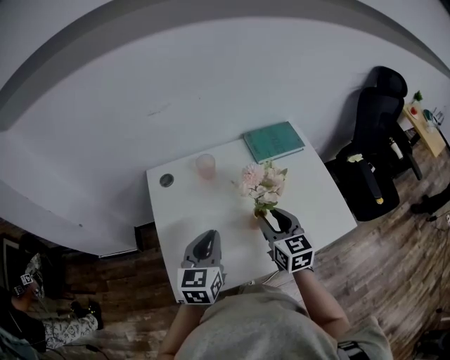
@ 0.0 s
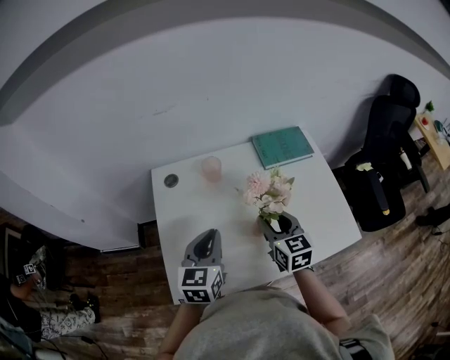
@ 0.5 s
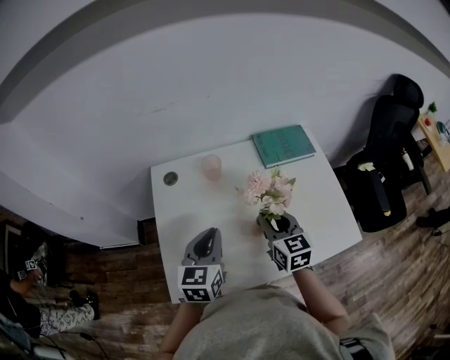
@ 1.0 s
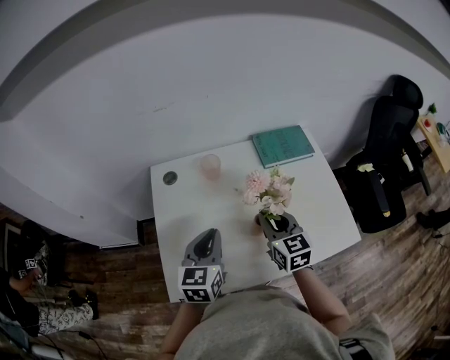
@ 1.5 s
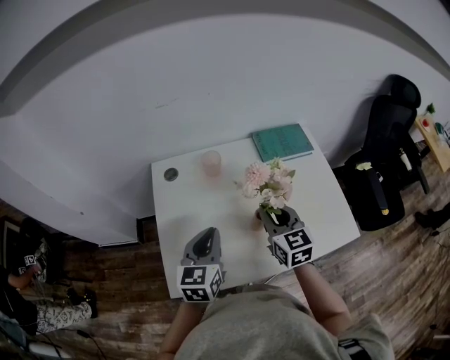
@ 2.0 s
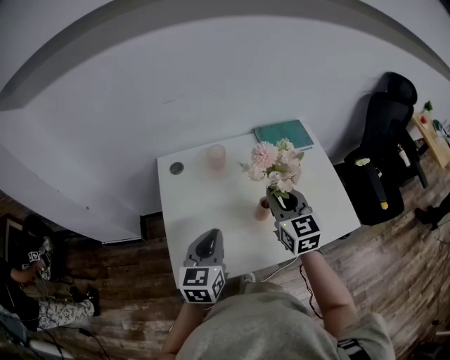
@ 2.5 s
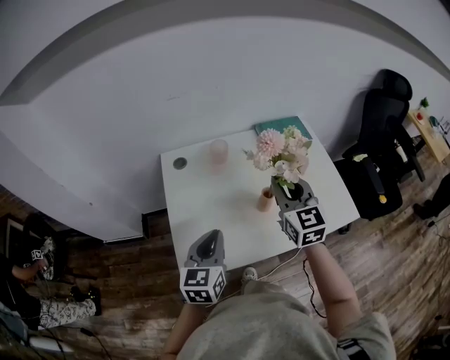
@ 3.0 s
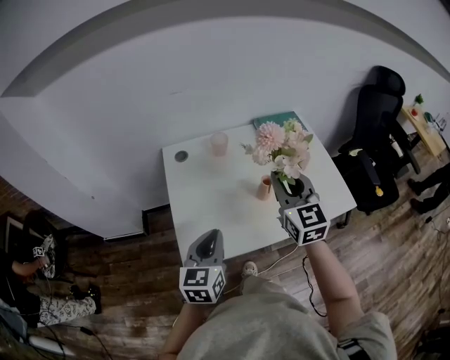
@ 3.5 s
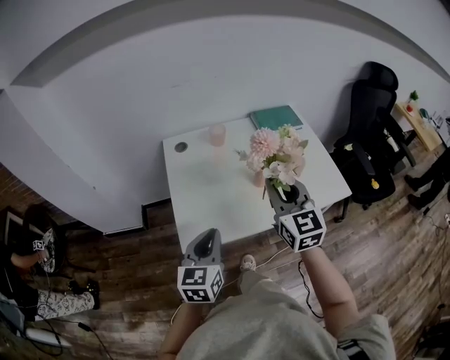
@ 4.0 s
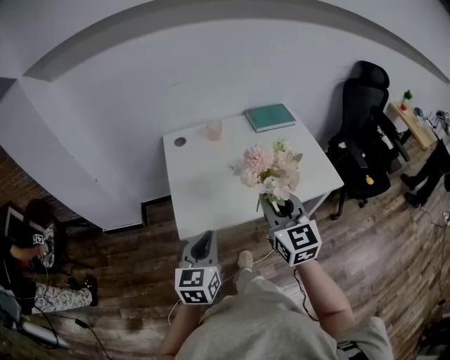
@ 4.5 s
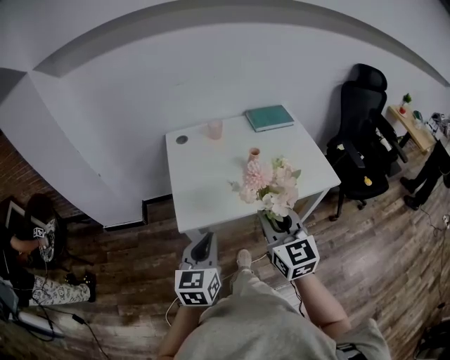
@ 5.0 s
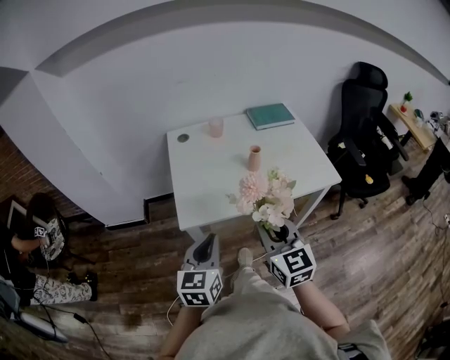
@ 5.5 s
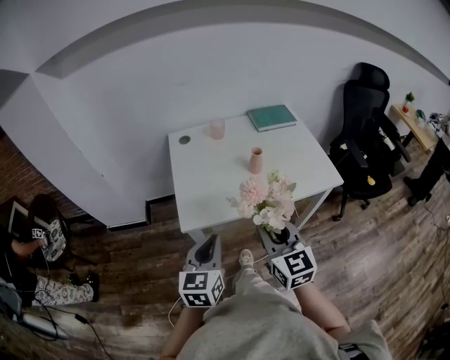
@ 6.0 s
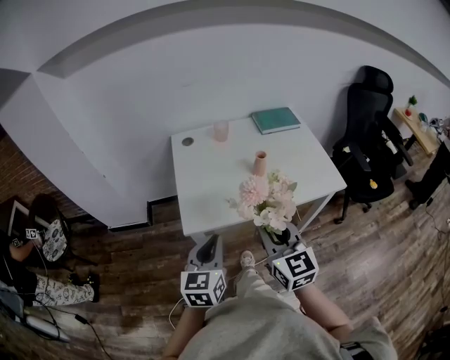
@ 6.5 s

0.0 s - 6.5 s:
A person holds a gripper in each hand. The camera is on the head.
0.0 s - 2.0 s: The right gripper closes.
2.0 s - 4.5 s: The right gripper heads backward and upward, covering approximately 30 cm. Meanwhile the left gripper moves backward, some 25 cm.
4.5 s - 6.5 s: The right gripper is displaced backward by roughly 10 cm.

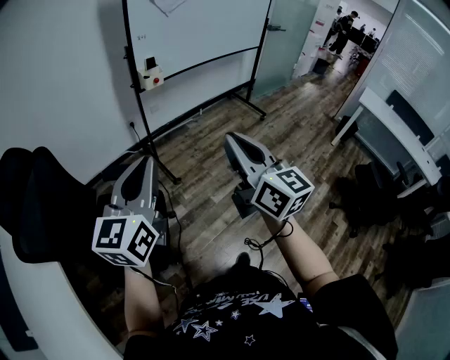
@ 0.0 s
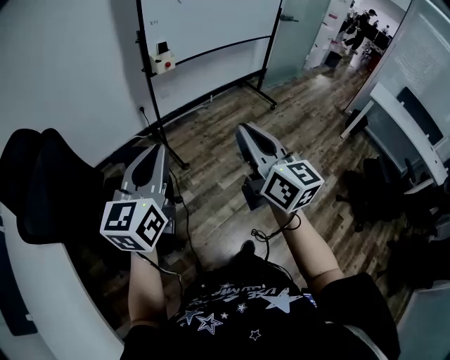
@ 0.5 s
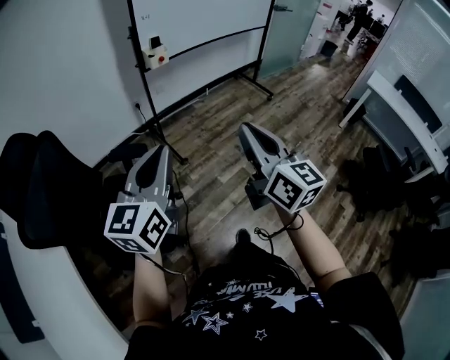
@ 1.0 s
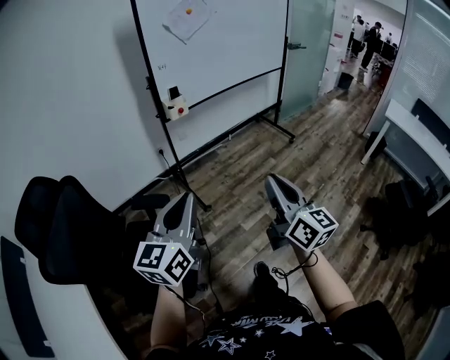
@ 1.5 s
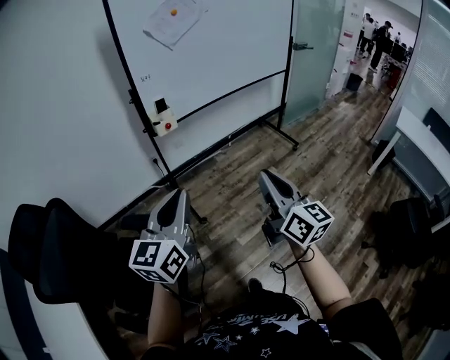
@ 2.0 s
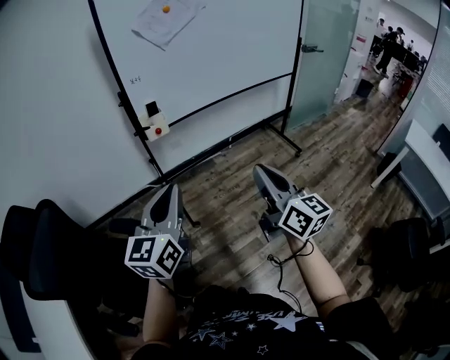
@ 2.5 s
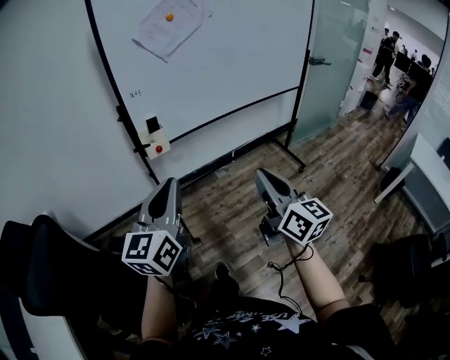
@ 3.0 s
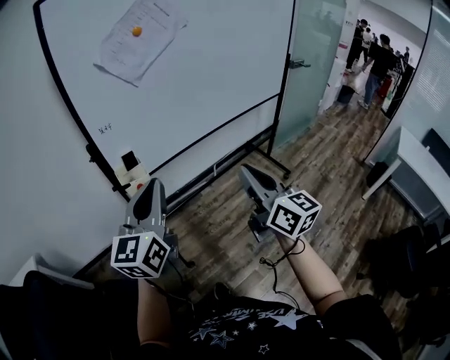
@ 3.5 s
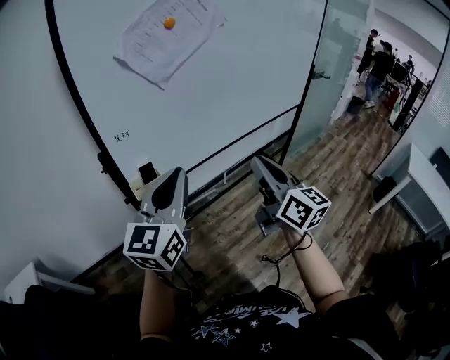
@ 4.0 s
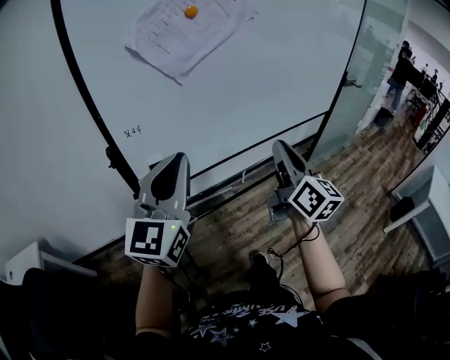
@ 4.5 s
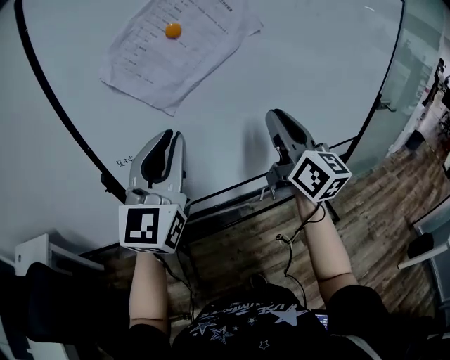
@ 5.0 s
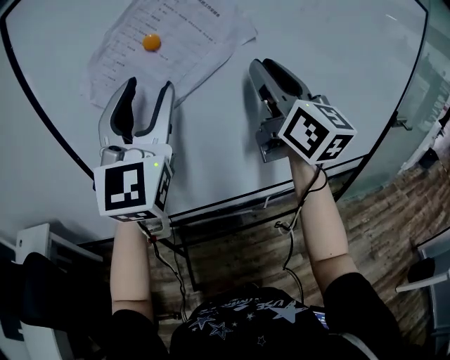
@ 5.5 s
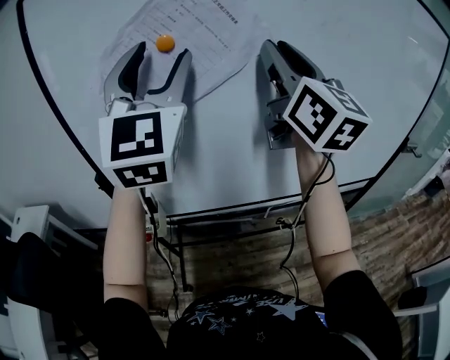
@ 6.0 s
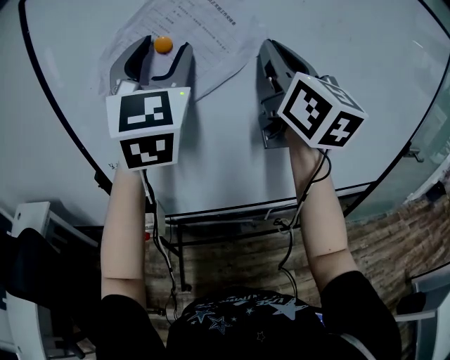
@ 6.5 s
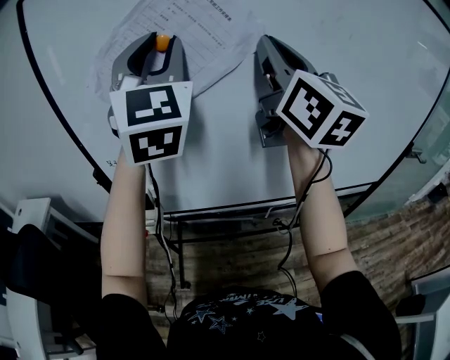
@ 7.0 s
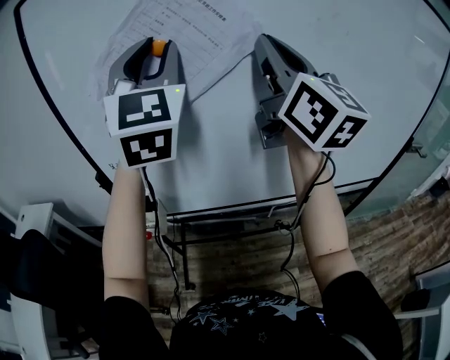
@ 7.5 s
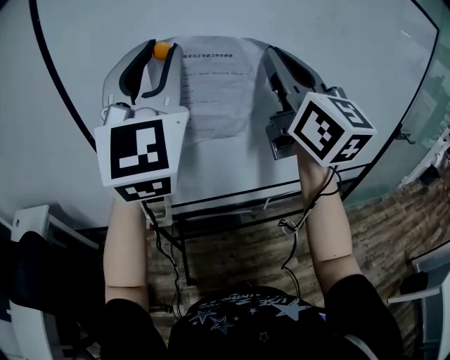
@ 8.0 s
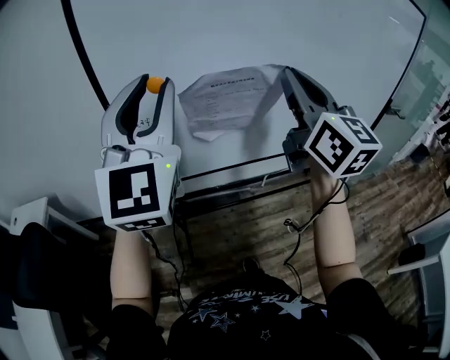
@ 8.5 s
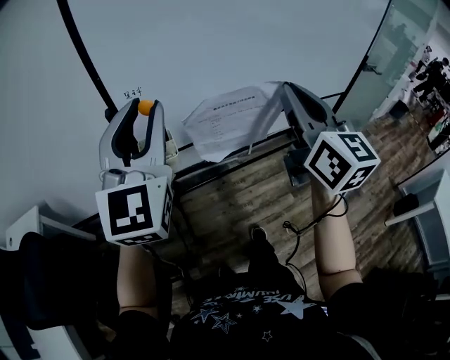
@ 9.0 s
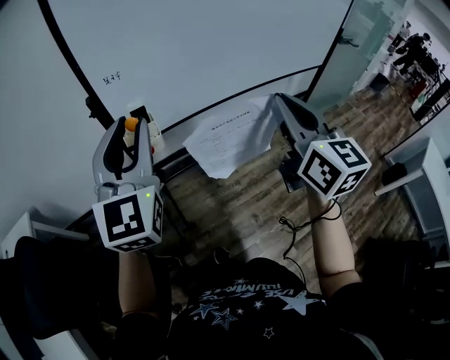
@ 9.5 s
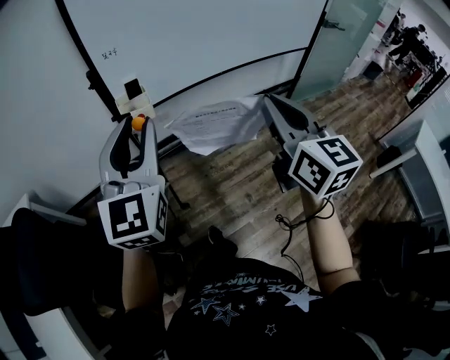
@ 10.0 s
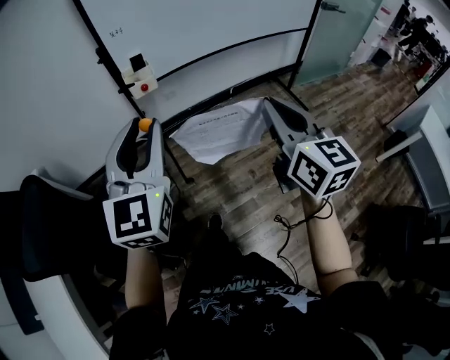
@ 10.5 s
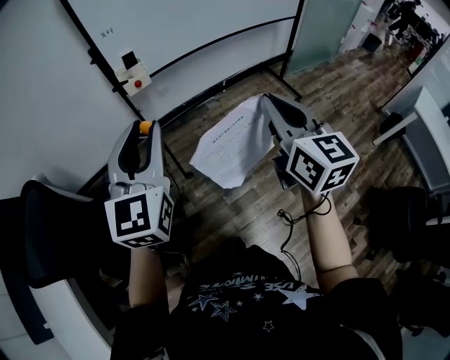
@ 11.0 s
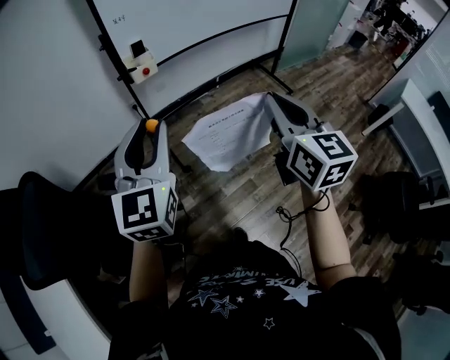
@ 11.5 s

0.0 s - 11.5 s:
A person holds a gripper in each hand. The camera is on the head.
0.0 s - 2.0 s: Both grippers travel together forward and to the right, about 25 cm.
2.0 s - 4.0 s: The pair of grippers is taken forward, some 40 cm.
4.0 s - 6.0 s: The left gripper ends up approximately 35 cm from where it was, changes its angle by roughly 60 degrees, and opens; the right gripper changes place by some 40 cm, changes its angle by about 30 degrees, and opens.
6.0 s - 7.5 s: The right gripper closes. Meanwhile the left gripper closes its fingers.
7.5 s - 9.5 s: The right gripper heads backward and downward, covering approximately 40 cm, and swivels roughly 30 degrees; the left gripper is displaced backward, downward and to the left by approximately 35 cm, and turns by approximately 30 degrees.
9.5 s - 11.5 s: The grippers both shift backward by approximately 30 cm.

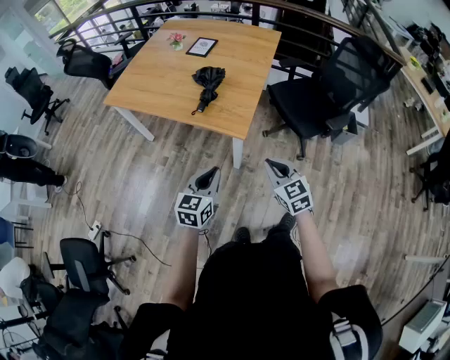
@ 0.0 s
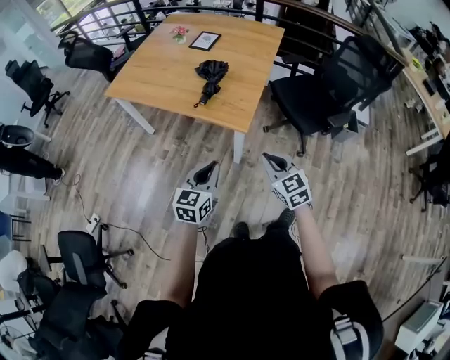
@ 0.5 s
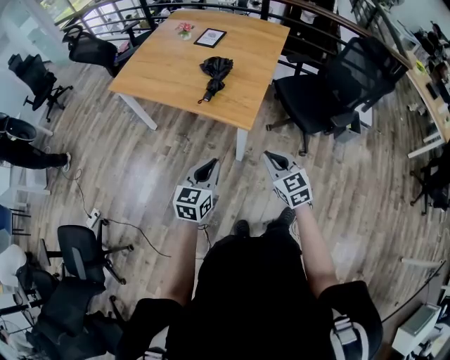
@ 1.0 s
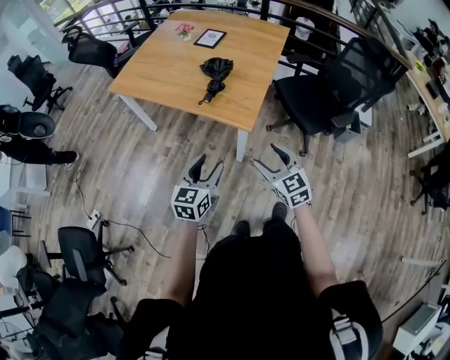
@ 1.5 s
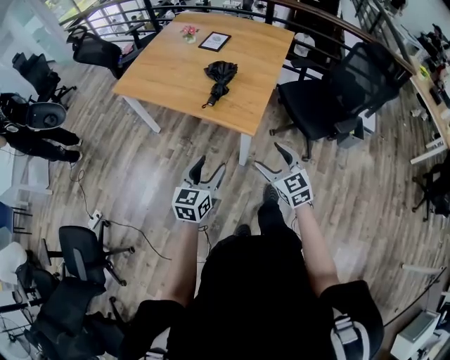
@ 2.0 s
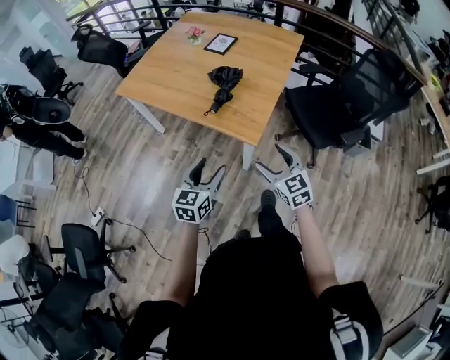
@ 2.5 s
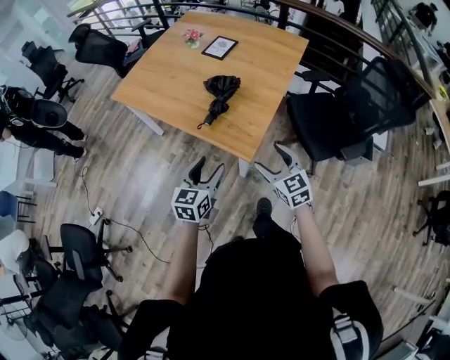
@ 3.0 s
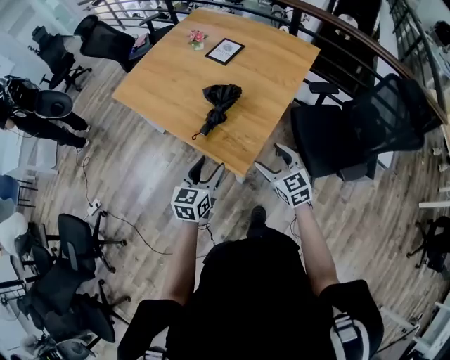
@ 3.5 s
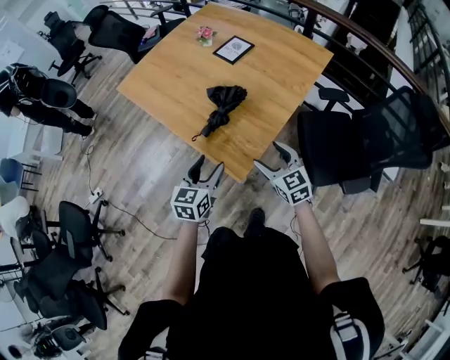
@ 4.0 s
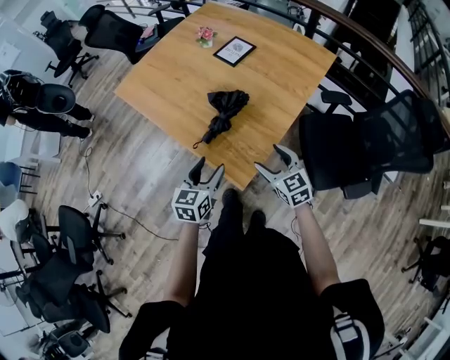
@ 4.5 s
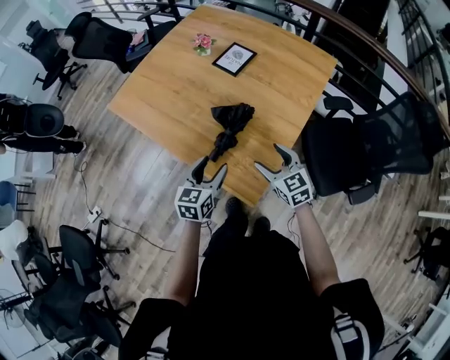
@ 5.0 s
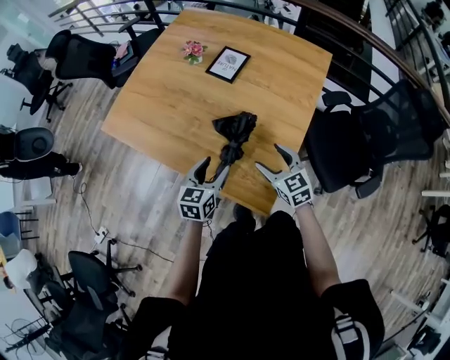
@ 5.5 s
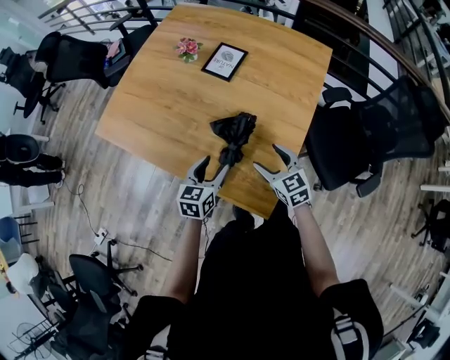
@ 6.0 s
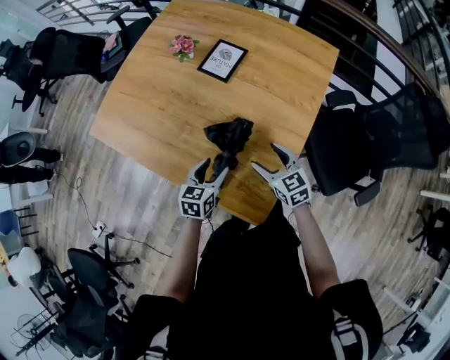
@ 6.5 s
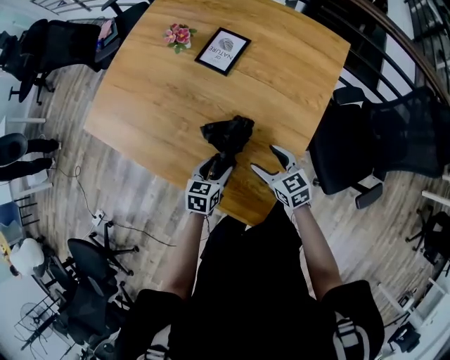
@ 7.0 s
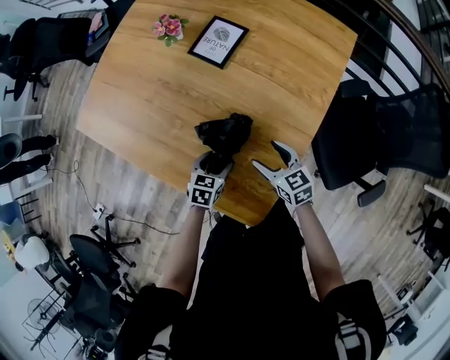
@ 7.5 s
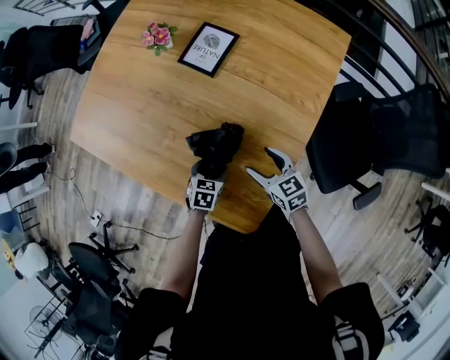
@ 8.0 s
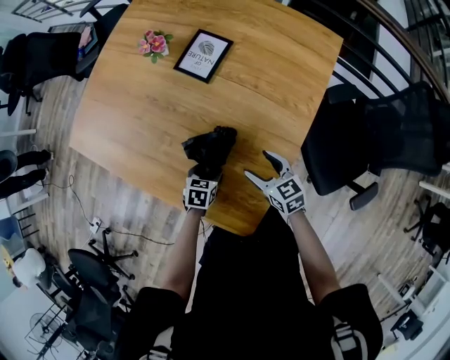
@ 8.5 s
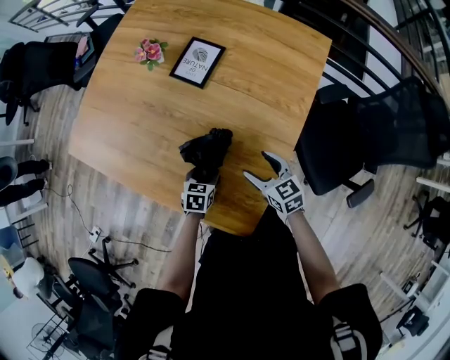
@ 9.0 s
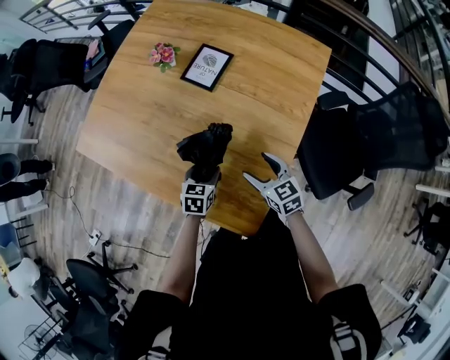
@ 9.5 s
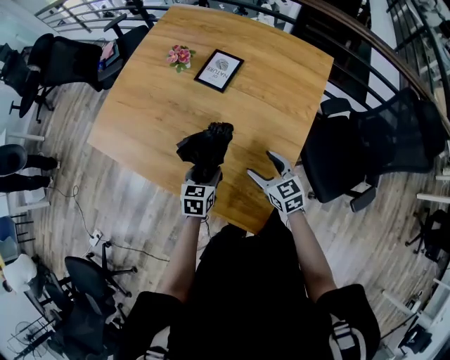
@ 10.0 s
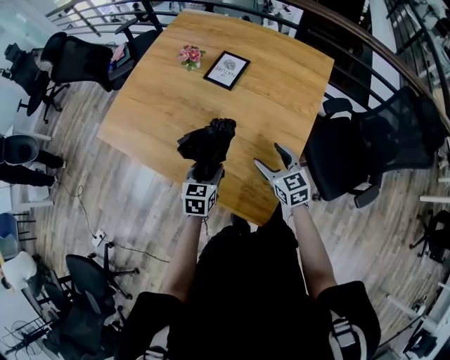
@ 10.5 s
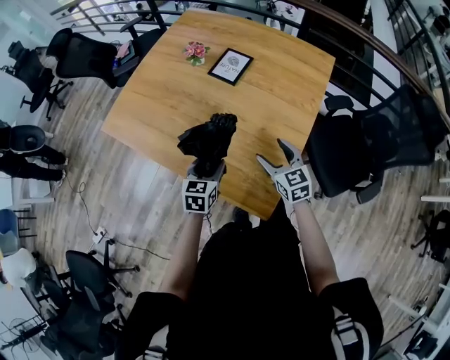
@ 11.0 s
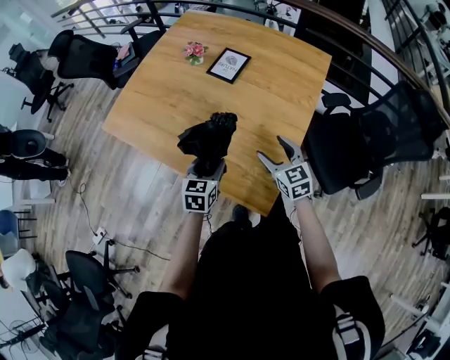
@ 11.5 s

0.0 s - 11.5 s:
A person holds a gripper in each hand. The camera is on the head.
0.0 s - 2.0 s: The right gripper opens up. The left gripper opens its fingers.
2.0 s - 4.0 s: Both grippers travel together forward and to the right, some 25 cm.
4.0 s - 6.0 s: The right gripper is displaced forward and to the left by some 20 cm. Meanwhile the left gripper shifts some 20 cm forward.
6.0 s - 7.5 s: The left gripper heads downward, covering roughly 15 cm, and rotates some 20 degrees; the right gripper heads downward and forward, covering roughly 10 cm.
7.5 s - 9.5 s: The left gripper ends up about 5 cm from where it was.
9.5 s - 11.5 s: The right gripper travels upward and backward by roughly 10 cm, while the left gripper moves upward, backward and to the left, some 15 cm.
